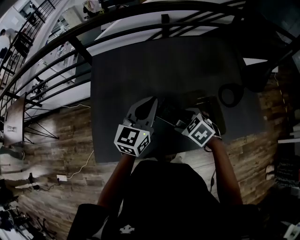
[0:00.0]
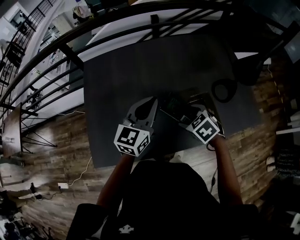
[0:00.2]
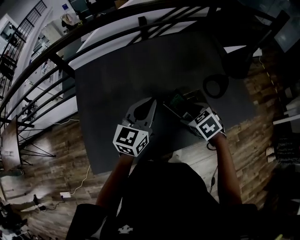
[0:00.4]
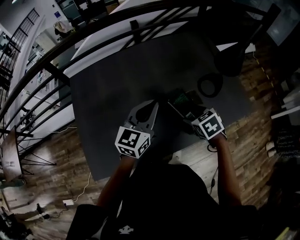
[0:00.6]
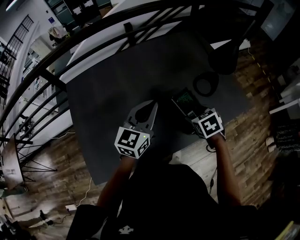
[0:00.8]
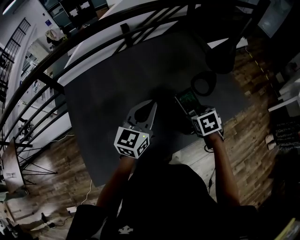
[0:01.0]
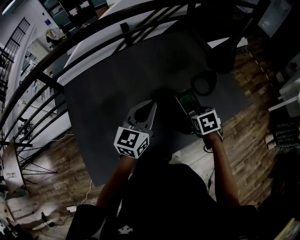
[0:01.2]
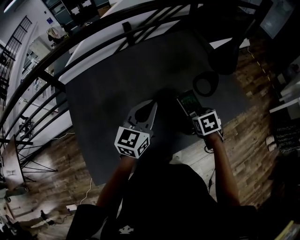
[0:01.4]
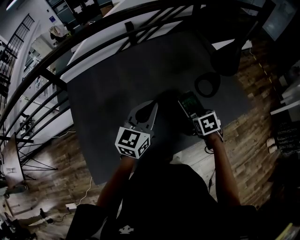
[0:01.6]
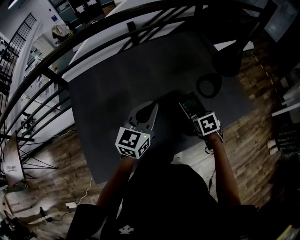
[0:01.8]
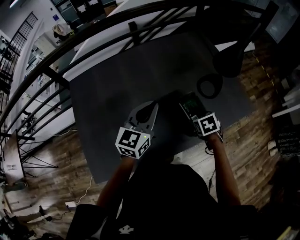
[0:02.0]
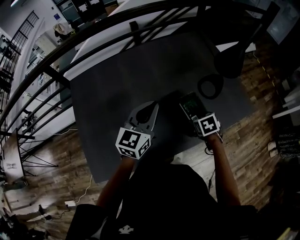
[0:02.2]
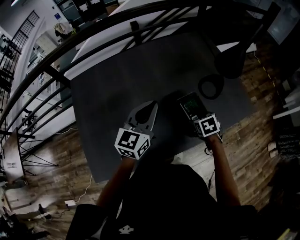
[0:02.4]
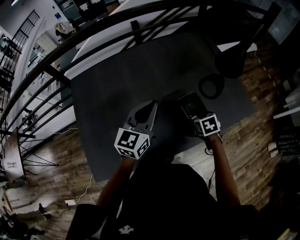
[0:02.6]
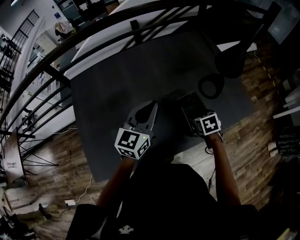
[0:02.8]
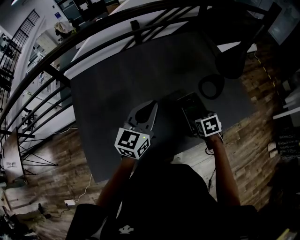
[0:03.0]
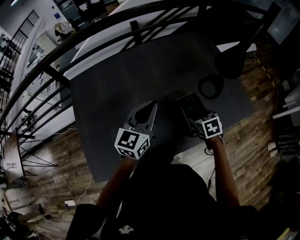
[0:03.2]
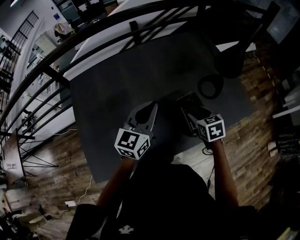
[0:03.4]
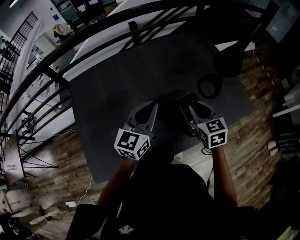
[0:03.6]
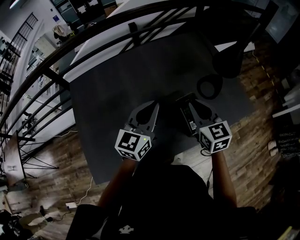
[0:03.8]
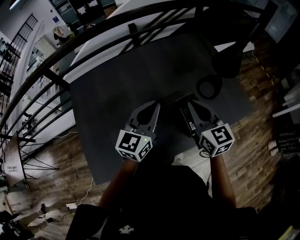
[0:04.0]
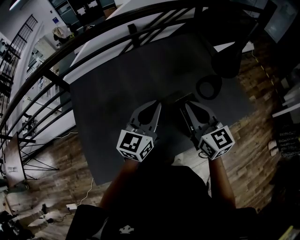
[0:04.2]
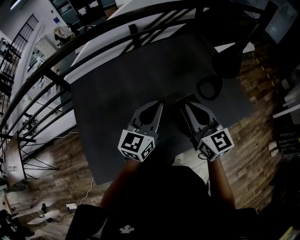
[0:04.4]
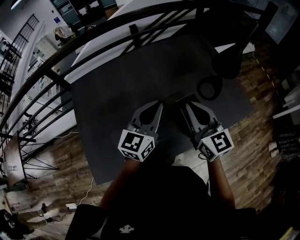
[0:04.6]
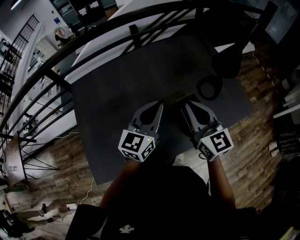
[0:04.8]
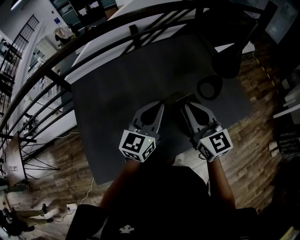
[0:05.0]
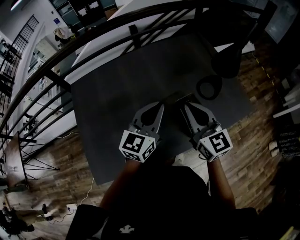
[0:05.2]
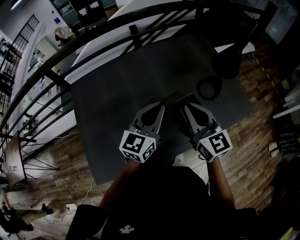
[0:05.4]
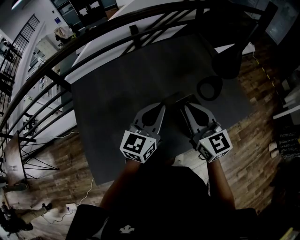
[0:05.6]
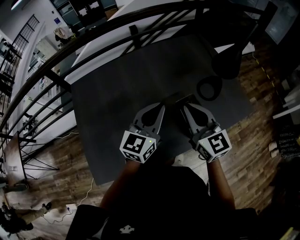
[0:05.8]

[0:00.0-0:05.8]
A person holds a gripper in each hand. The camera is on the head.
0.0 to 1.4 s: The right gripper ends up some 20 cm from where it was, and rolls clockwise, seen from behind, by about 40 degrees; the left gripper moves approximately 10 cm.
1.4 to 2.8 s: The grippers stay close to where they were, moving slightly.
2.8 to 4.4 s: The right gripper shifts approximately 25 cm upward, tilts its fingers about 60 degrees upward, and closes up.
4.4 to 5.8 s: The two grippers keep their place.

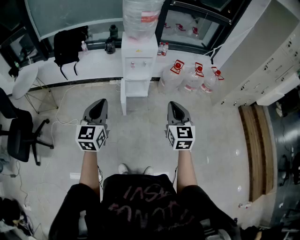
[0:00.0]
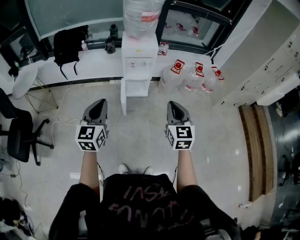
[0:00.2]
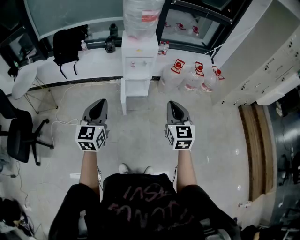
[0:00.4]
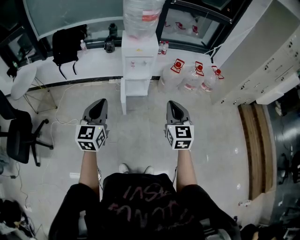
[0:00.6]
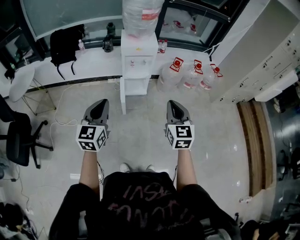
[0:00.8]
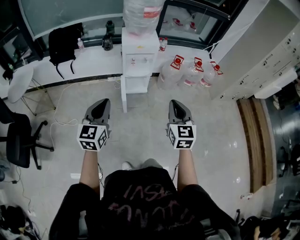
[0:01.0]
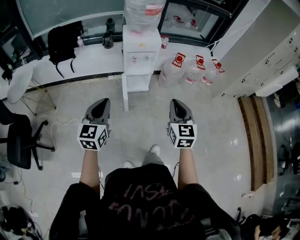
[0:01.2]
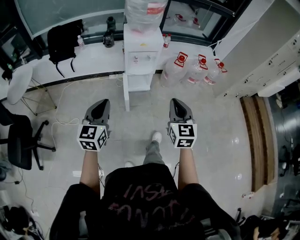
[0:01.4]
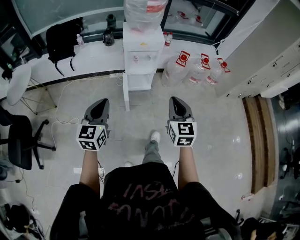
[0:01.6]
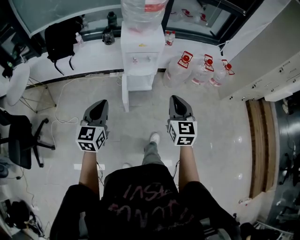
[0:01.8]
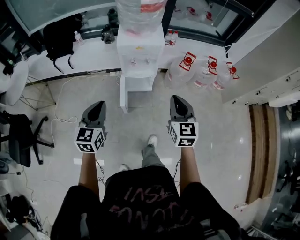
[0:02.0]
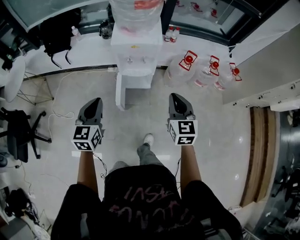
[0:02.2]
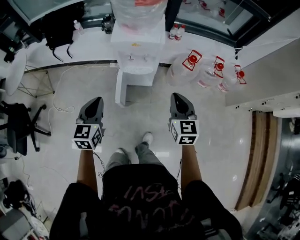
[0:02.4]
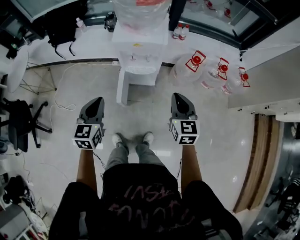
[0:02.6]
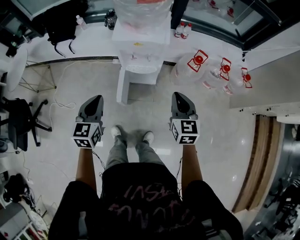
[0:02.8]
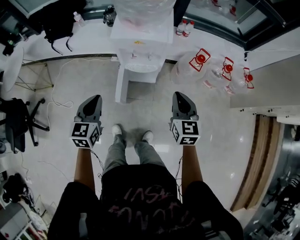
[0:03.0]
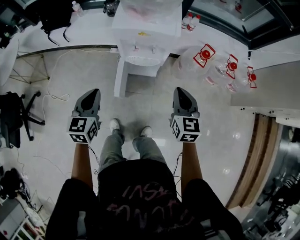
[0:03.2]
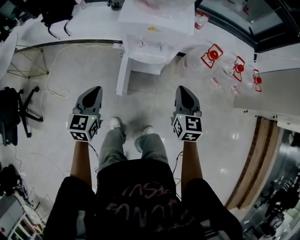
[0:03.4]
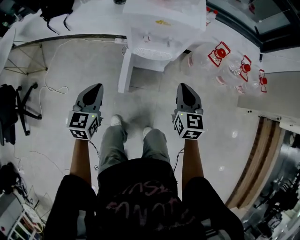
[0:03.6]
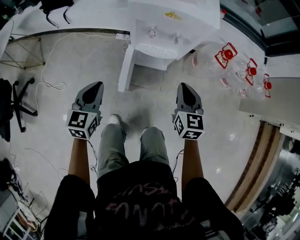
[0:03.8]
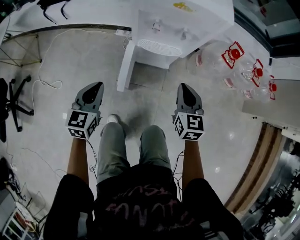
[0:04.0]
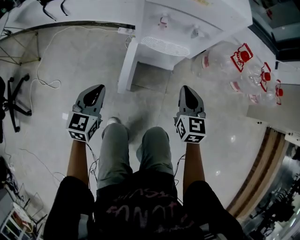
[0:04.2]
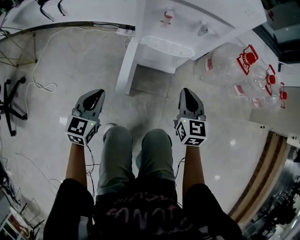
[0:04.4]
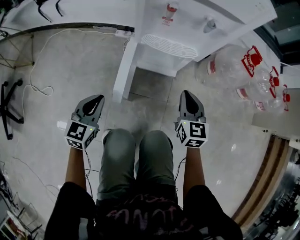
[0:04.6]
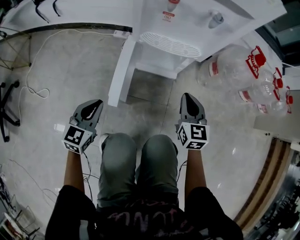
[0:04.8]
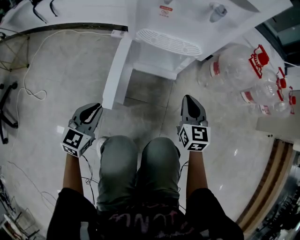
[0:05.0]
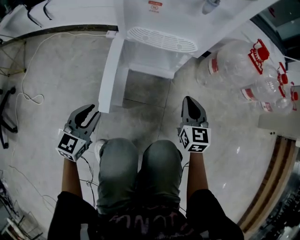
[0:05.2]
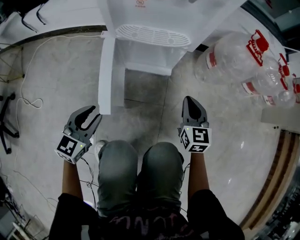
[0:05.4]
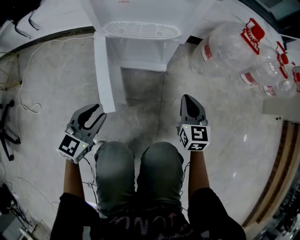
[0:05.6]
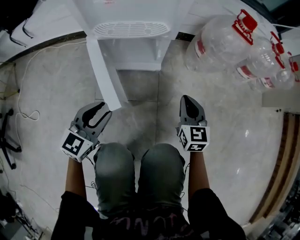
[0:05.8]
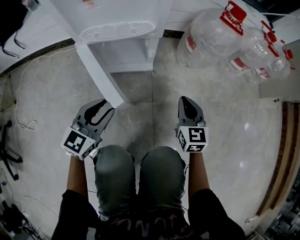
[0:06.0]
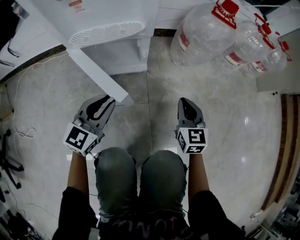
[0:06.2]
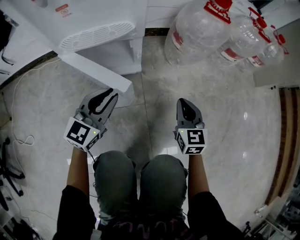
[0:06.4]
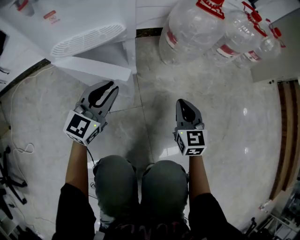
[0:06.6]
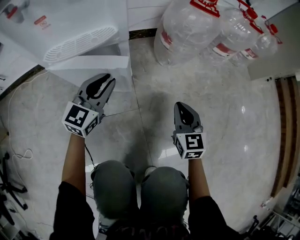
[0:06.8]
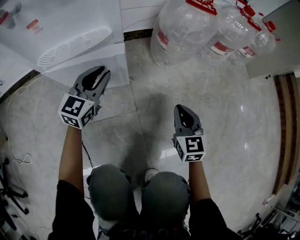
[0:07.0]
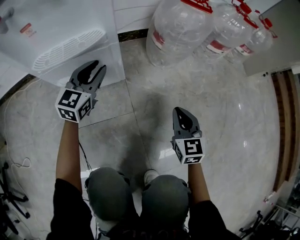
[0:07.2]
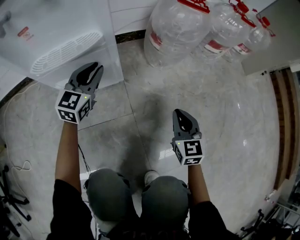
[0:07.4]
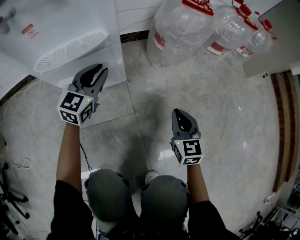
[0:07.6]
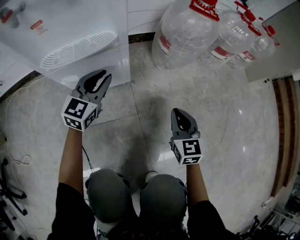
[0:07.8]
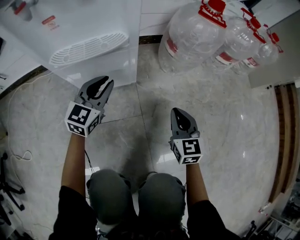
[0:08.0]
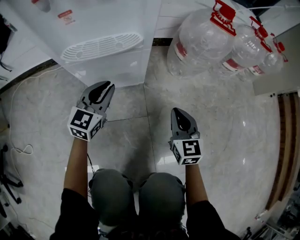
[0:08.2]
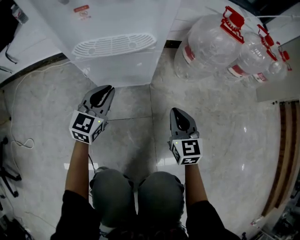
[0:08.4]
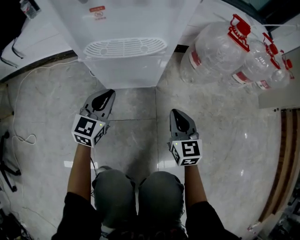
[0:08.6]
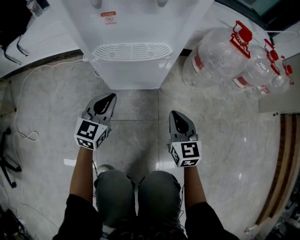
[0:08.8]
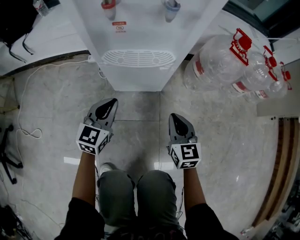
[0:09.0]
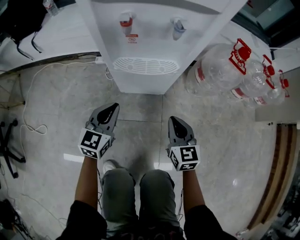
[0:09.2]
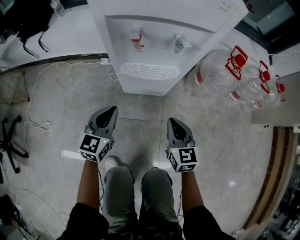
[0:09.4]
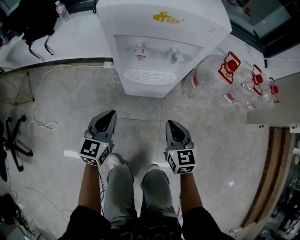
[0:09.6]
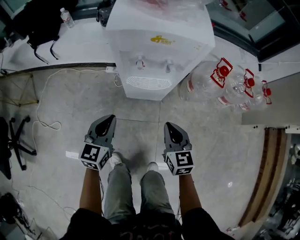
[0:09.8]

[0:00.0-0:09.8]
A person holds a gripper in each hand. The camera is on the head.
0.0 to 1.4 s: The left gripper is displaced to the left, forward and downward by some 10 cm, while the right gripper moves to the left, roughly 5 cm.
1.4 to 2.8 s: The left gripper travels forward, to the right and downward by about 30 cm, while the right gripper heads forward and to the right, covering roughly 35 cm.
2.8 to 4.2 s: The grippers both shift downward by about 35 cm.
4.2 to 5.6 s: Both grippers travel together downward and to the right, some 25 cm. The left gripper opens up.
5.6 to 7.0 s: The left gripper travels forward and to the right by roughly 25 cm; the right gripper is displaced to the right by about 10 cm.
7.0 to 8.4 s: The right gripper is displaced to the left by some 10 cm. Meanwhile the left gripper shifts about 10 cm to the left and backward.
8.4 to 9.8 s: The two grippers go some 30 cm upward.

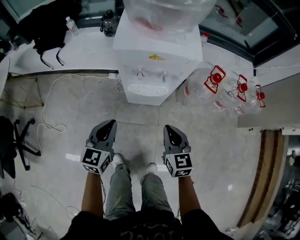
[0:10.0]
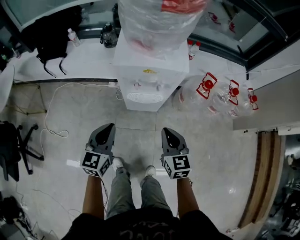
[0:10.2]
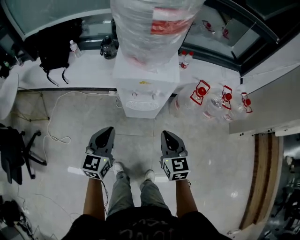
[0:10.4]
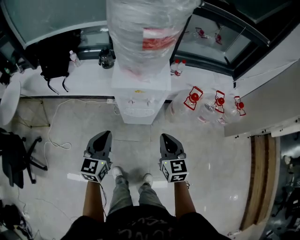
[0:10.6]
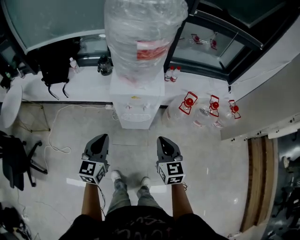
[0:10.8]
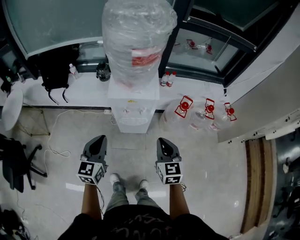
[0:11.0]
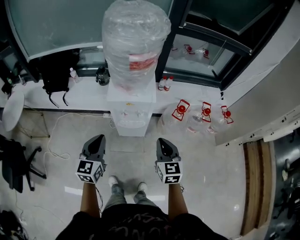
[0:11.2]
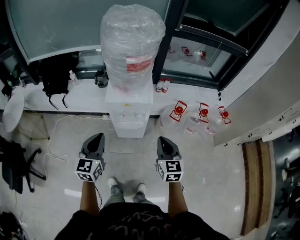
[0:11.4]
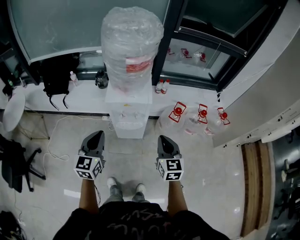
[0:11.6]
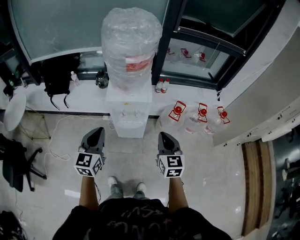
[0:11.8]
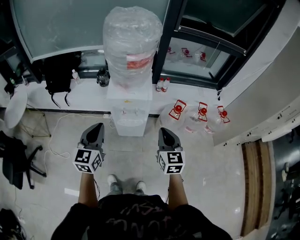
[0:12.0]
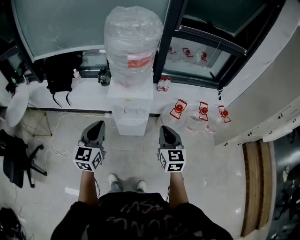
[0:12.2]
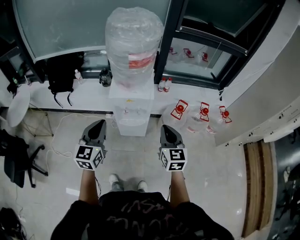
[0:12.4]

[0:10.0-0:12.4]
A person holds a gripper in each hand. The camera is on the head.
10.0 to 11.2 s: The grippers both shift upward by some 30 cm.
11.2 to 12.4 s: The grippers both shift upward by roughly 5 cm.

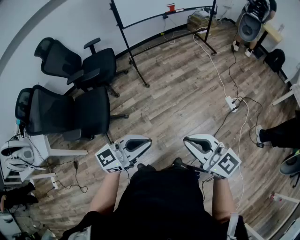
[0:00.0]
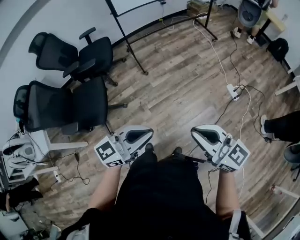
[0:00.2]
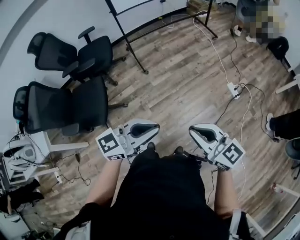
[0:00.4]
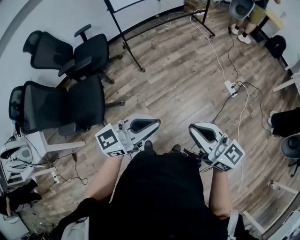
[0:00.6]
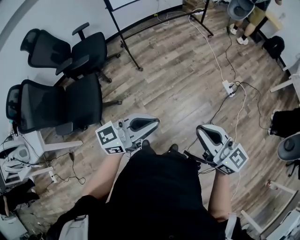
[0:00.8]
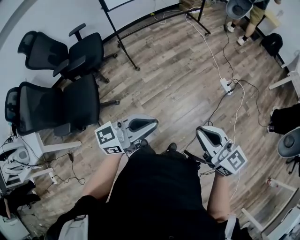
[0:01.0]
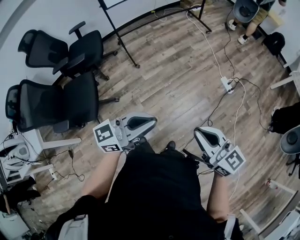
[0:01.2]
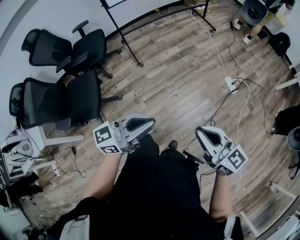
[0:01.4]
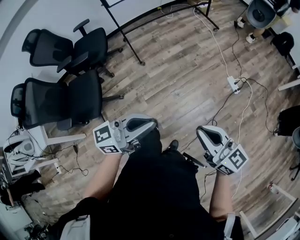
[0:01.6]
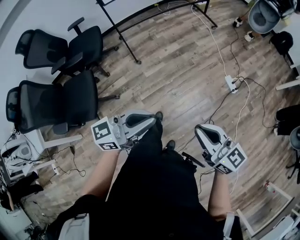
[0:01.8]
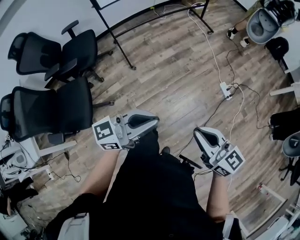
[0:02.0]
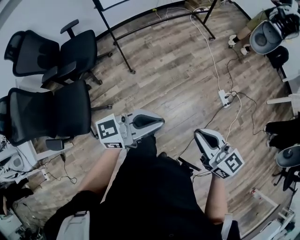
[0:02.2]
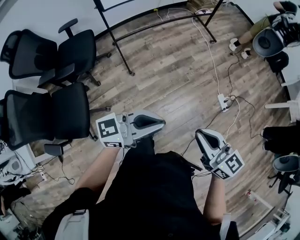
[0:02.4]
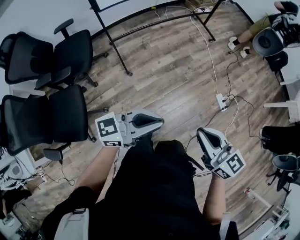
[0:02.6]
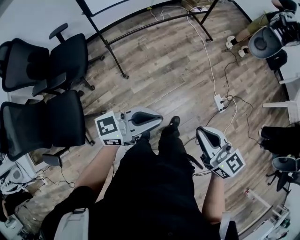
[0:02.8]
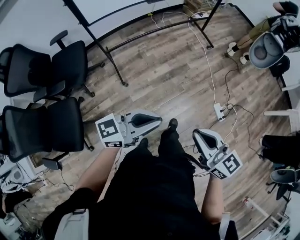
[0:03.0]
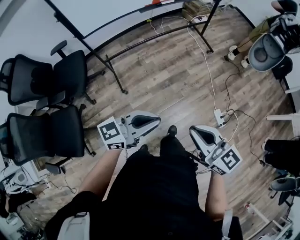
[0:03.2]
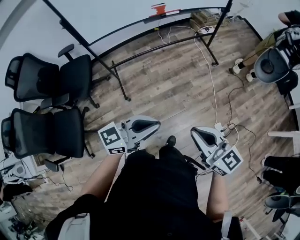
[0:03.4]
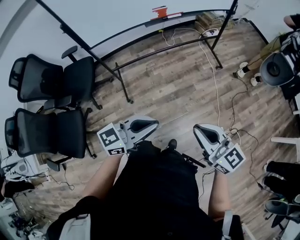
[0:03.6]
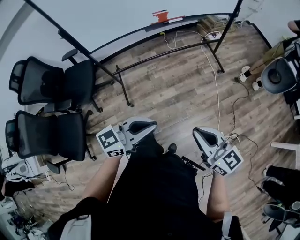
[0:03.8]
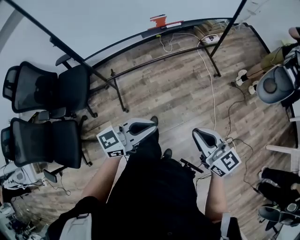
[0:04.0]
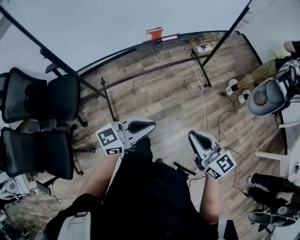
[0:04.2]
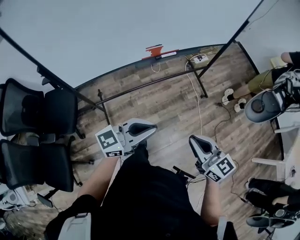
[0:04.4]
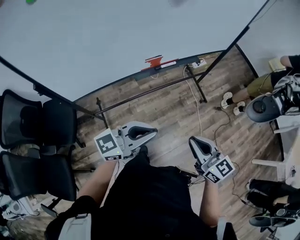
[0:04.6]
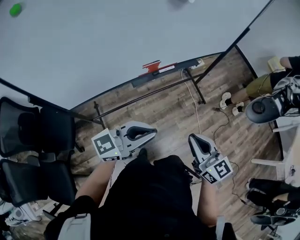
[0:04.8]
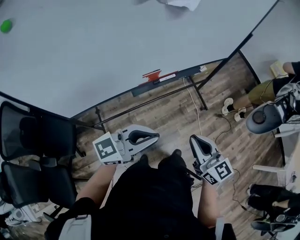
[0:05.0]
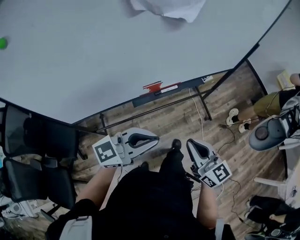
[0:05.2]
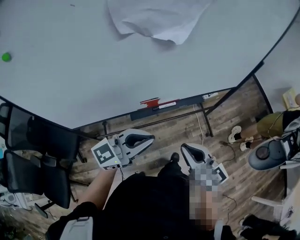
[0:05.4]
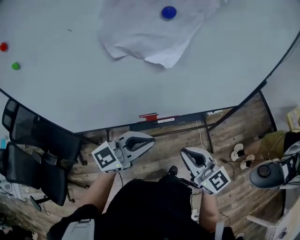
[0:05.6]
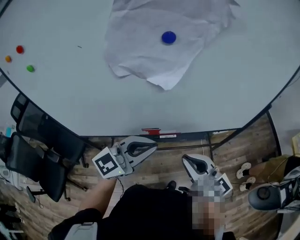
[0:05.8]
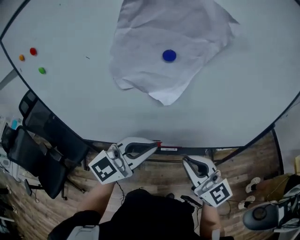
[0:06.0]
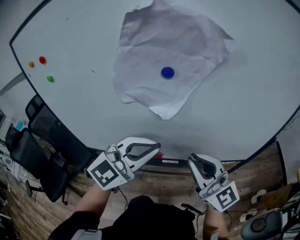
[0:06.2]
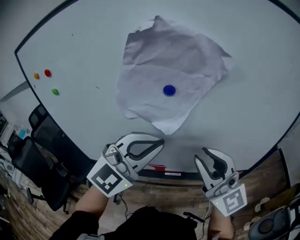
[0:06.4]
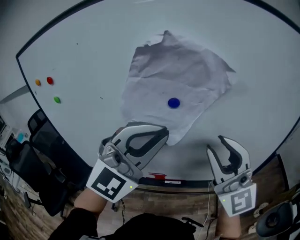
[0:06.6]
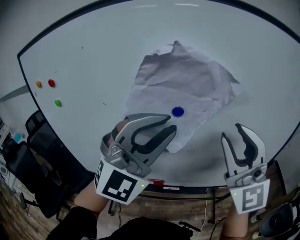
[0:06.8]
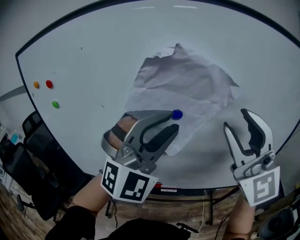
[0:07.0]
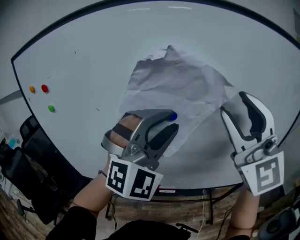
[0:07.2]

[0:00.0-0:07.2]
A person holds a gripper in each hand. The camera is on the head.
0.0 to 1.4 s: The left gripper is displaced forward and to the right by roughly 15 cm. The right gripper heads to the right and forward, covering approximately 15 cm.
1.4 to 2.8 s: Both grippers move forward, some 30 cm.
2.8 to 4.4 s: The pair of grippers is taken forward, about 50 cm.
4.4 to 5.8 s: The left gripper moves about 35 cm, and swivels approximately 30 degrees. The right gripper ends up roughly 35 cm from where it was, and turns by roughly 30 degrees.
5.8 to 7.2 s: The left gripper heads upward and forward, covering about 30 cm, twists about 60 degrees clockwise, seen from behind, and opens. Meanwhile the right gripper is displaced upward by some 35 cm, twists approximately 40 degrees counterclockwise, seen from behind, and opens up.
